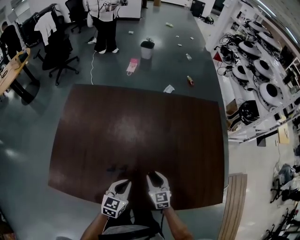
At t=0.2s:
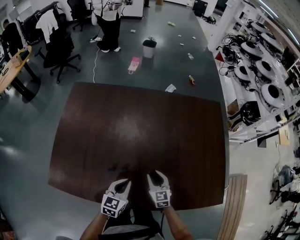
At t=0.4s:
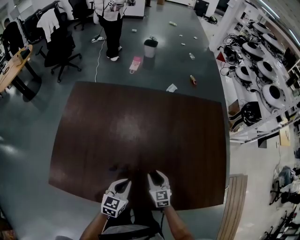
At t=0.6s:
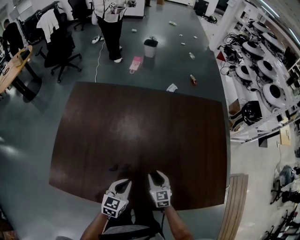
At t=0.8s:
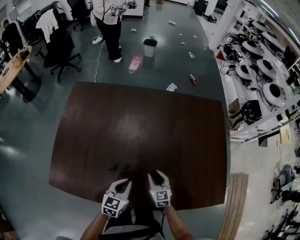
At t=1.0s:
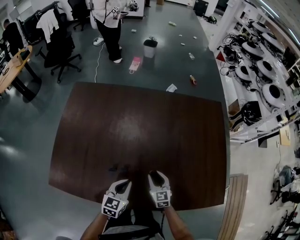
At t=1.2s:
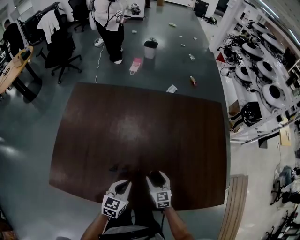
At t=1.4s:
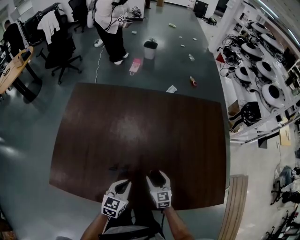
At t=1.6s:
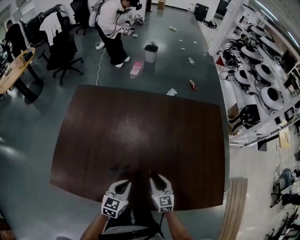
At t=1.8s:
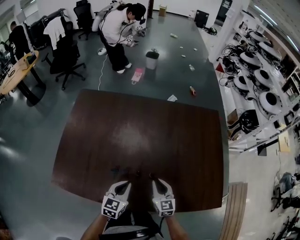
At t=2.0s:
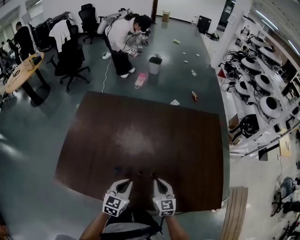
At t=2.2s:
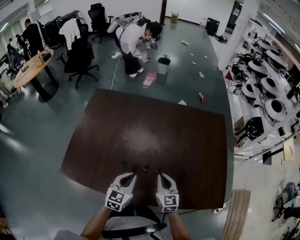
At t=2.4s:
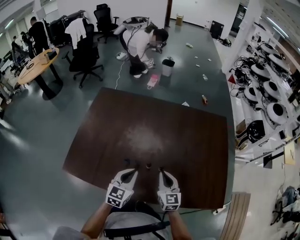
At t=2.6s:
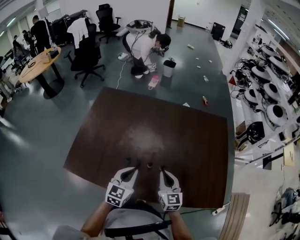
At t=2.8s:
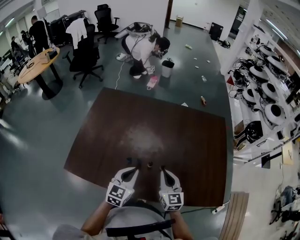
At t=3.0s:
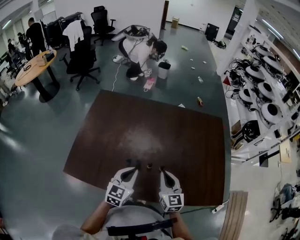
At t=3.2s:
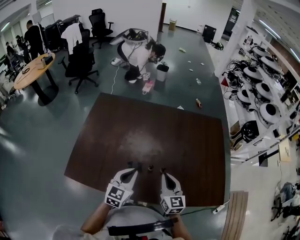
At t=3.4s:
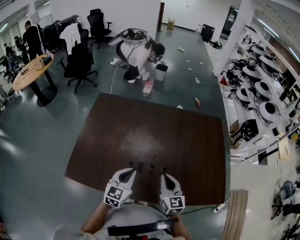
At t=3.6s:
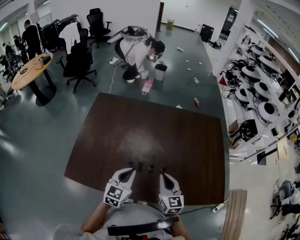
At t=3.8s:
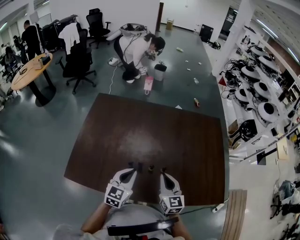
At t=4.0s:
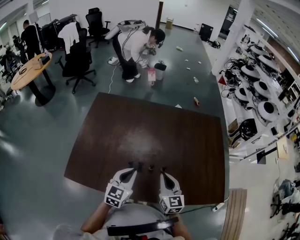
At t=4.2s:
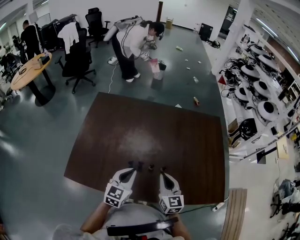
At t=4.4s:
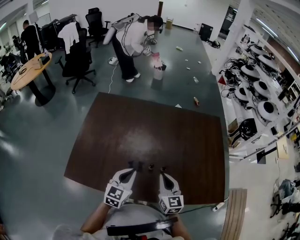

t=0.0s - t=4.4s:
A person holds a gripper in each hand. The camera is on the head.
t=0.0s - t=1.4s: The right gripper opens up.
t=1.4s - t=3.0s: The right gripper travels upward by about 20 cm, and closes its fingers. Meanwhile the left gripper travels upward by about 10 cm.
t=3.0s - t=4.4s: There are only small adjustments of the grippers.

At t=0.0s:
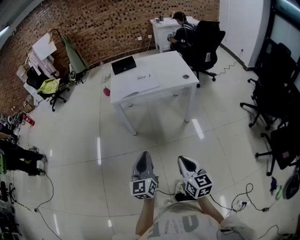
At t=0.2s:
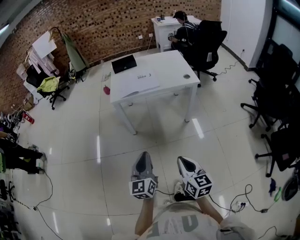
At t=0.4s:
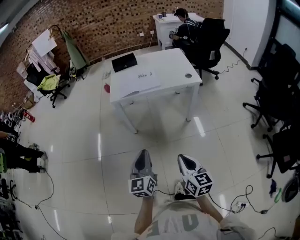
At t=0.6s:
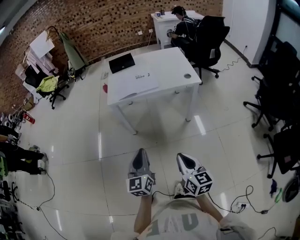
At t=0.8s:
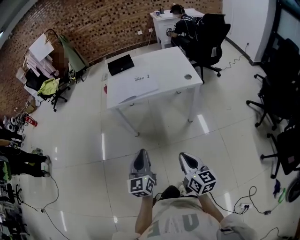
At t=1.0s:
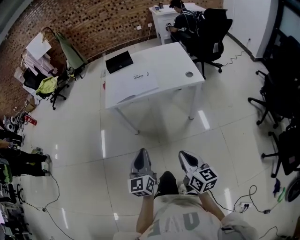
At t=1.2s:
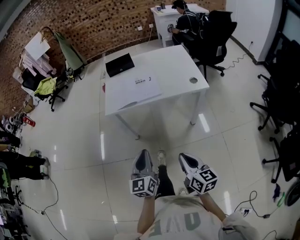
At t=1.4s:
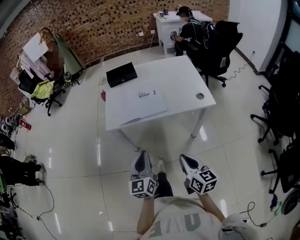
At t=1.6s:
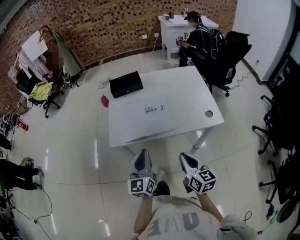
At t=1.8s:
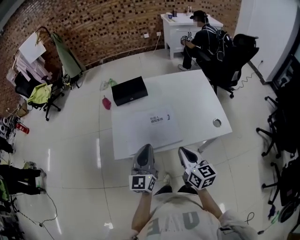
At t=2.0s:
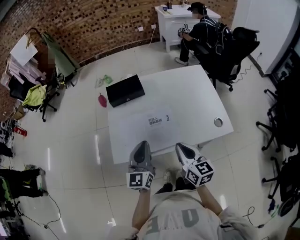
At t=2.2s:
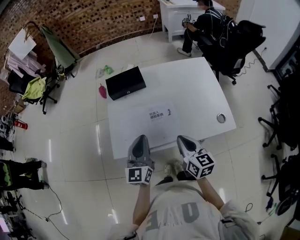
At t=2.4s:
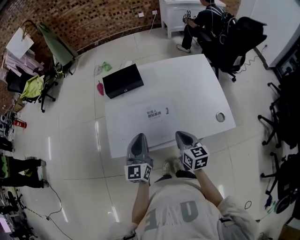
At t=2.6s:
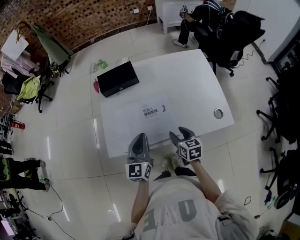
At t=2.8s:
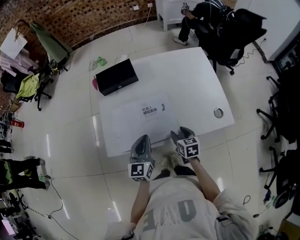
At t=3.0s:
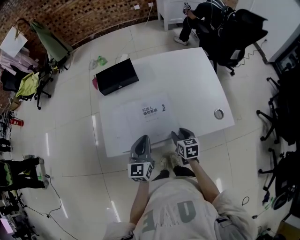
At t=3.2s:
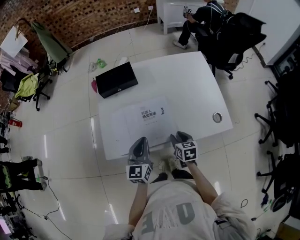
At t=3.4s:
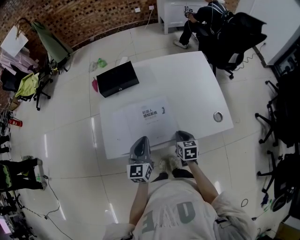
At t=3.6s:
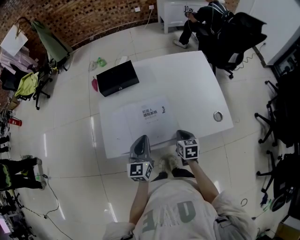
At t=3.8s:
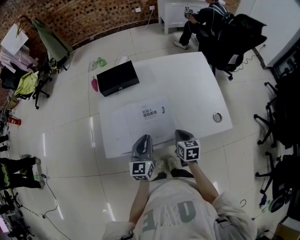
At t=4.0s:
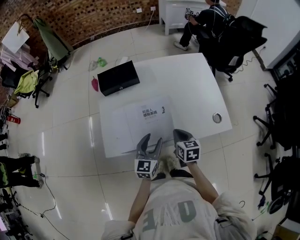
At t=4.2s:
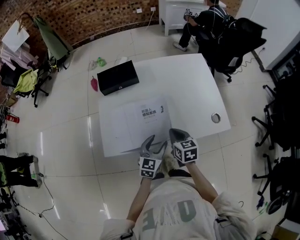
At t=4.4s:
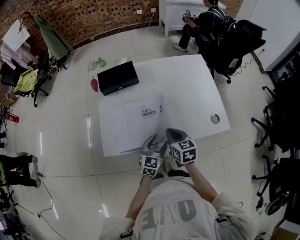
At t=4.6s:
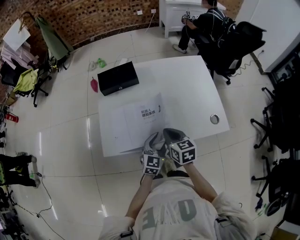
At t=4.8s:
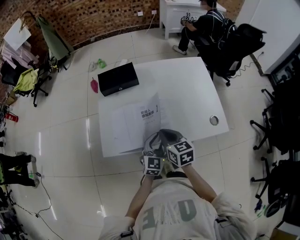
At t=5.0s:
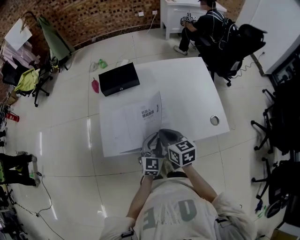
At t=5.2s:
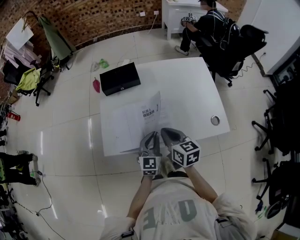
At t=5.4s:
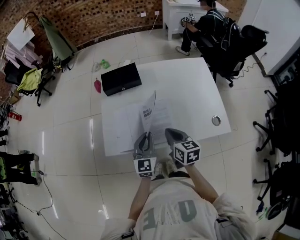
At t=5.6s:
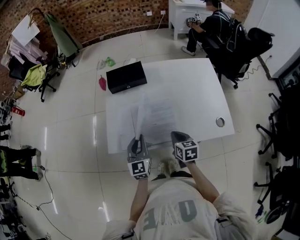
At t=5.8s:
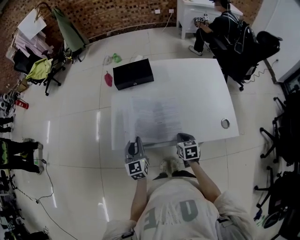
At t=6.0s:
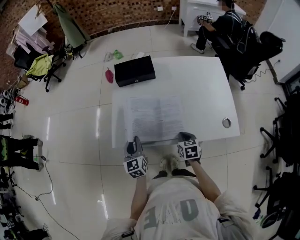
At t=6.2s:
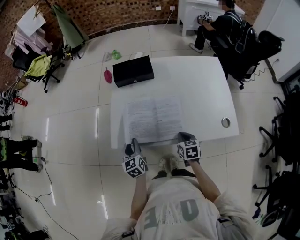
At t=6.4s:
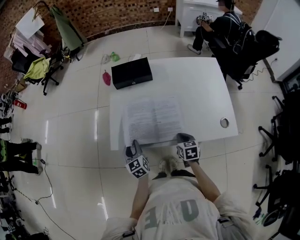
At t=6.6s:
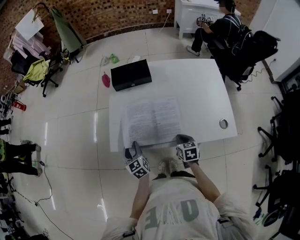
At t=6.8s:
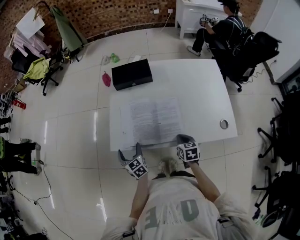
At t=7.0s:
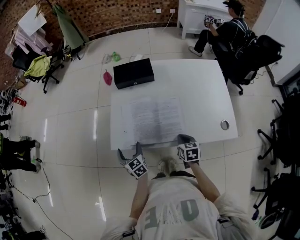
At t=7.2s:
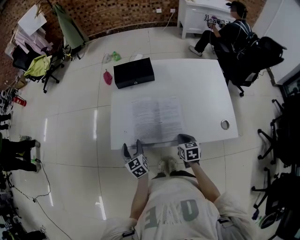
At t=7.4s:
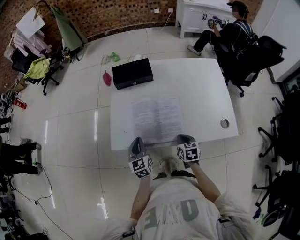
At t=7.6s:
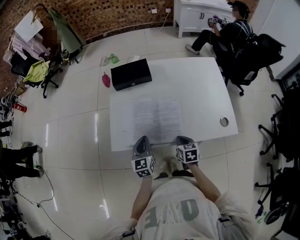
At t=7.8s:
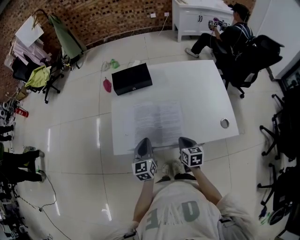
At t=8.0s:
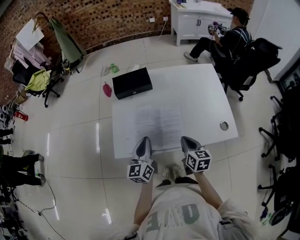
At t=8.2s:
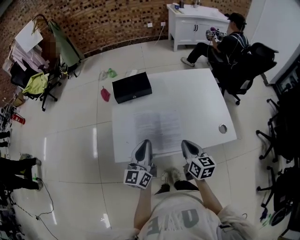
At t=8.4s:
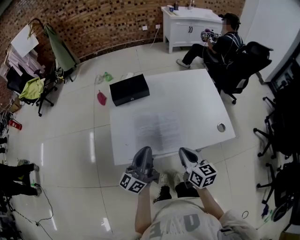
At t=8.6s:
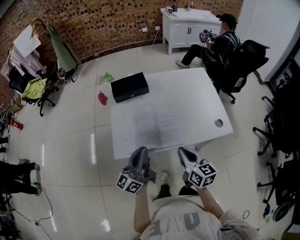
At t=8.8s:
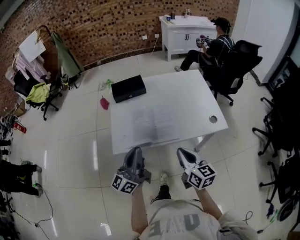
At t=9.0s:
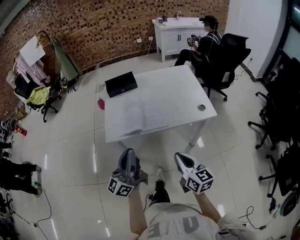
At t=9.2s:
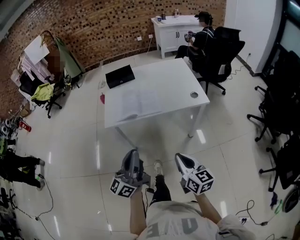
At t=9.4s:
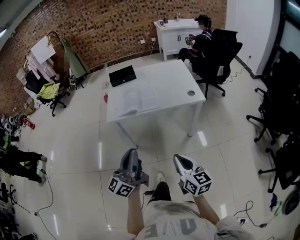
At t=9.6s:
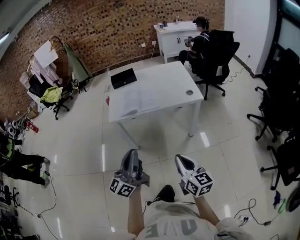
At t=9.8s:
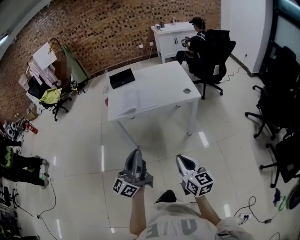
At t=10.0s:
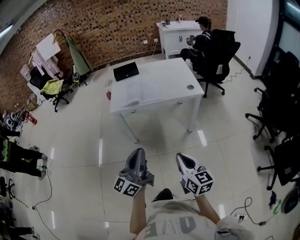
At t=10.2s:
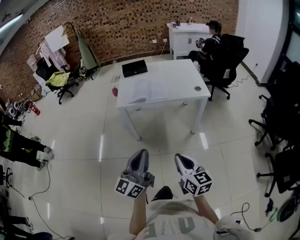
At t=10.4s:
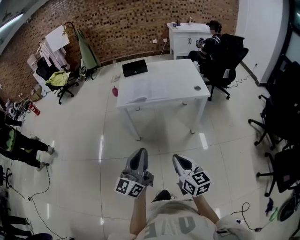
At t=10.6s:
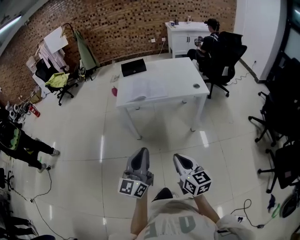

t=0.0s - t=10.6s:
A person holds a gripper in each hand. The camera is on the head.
t=0.0s - t=1.6s: The pair of grippers is taken forward, about 40 cm.
t=1.6s - t=3.0s: The two grippers go about 25 cm forward and downward. The right gripper swivels roughly 30 degrees, and opens up.
t=3.0s - t=4.6s: The left gripper shifts some 10 cm to the right and downward, and opens up; the right gripper goes about 10 cm upward and to the left, and closes up.
t=4.6s - t=6.0s: The left gripper shifts roughly 20 cm to the left, rotates about 40 degrees, and closes. The right gripper goes roughly 10 cm downward.
t=6.0s - t=7.6s: The left gripper travels to the right by approximately 5 cm, and opens, then closes again.
t=7.6s - t=9.0s: The two grippers go some 30 cm backward and upward. The left gripper angles its fingers upward, by some 50 degrees, while the right gripper points its fingers approximately 40 degrees further upward.
t=9.0s - t=10.6s: The two grippers go roughly 30 cm backward. The left gripper changes its angle by some 30 degrees.

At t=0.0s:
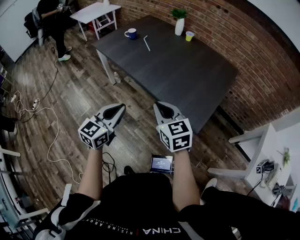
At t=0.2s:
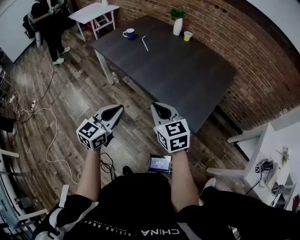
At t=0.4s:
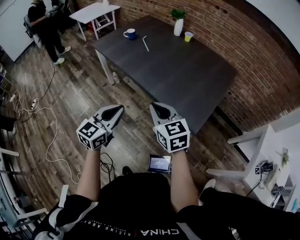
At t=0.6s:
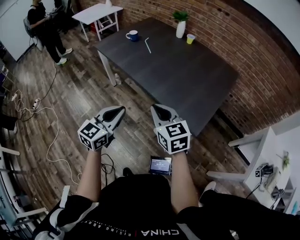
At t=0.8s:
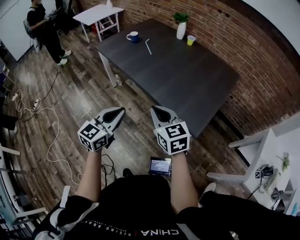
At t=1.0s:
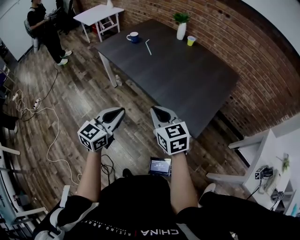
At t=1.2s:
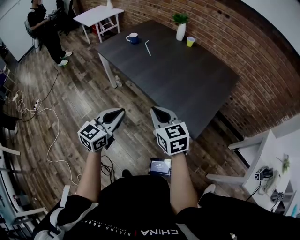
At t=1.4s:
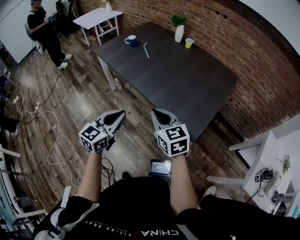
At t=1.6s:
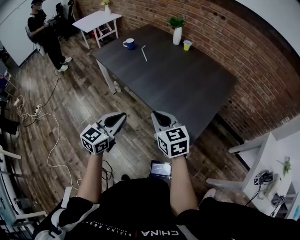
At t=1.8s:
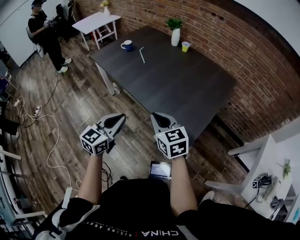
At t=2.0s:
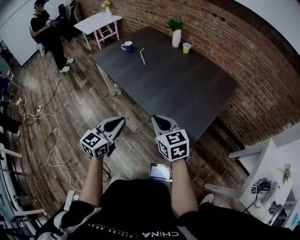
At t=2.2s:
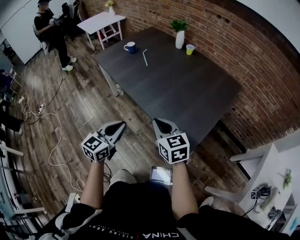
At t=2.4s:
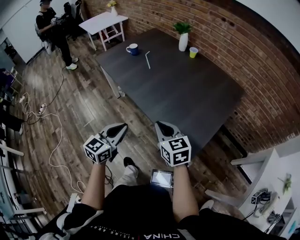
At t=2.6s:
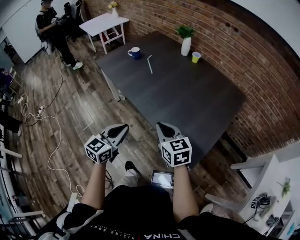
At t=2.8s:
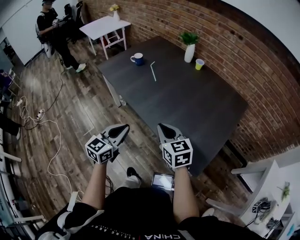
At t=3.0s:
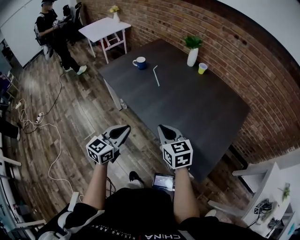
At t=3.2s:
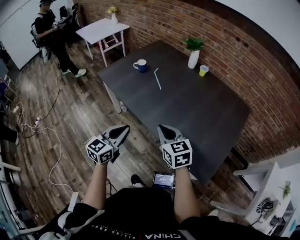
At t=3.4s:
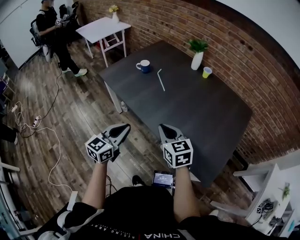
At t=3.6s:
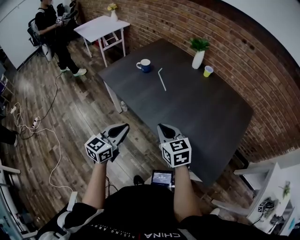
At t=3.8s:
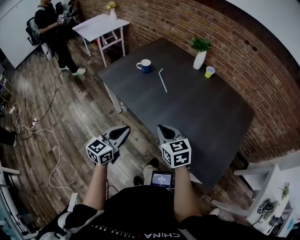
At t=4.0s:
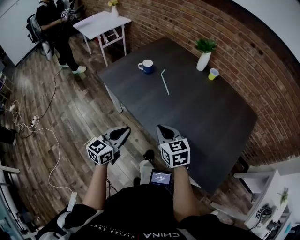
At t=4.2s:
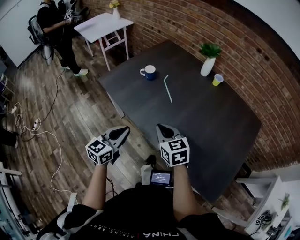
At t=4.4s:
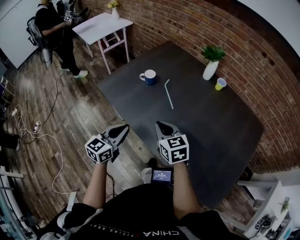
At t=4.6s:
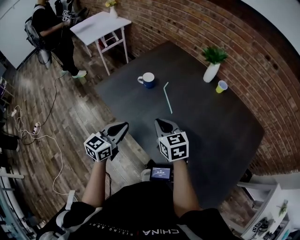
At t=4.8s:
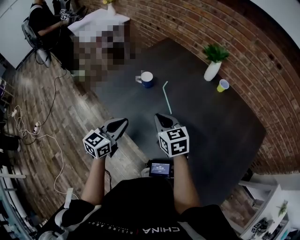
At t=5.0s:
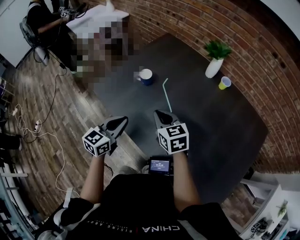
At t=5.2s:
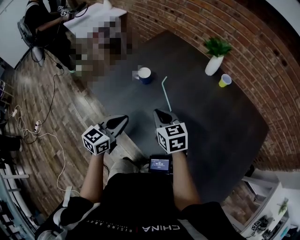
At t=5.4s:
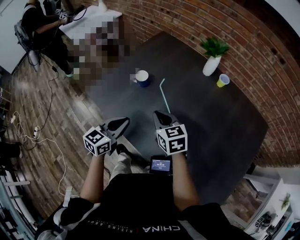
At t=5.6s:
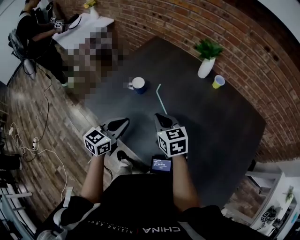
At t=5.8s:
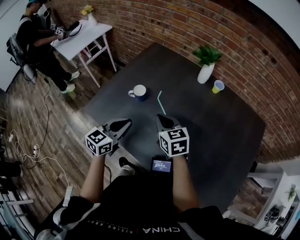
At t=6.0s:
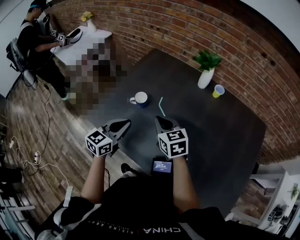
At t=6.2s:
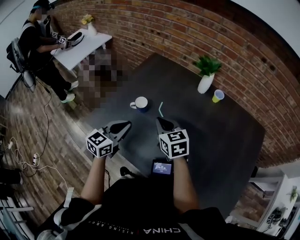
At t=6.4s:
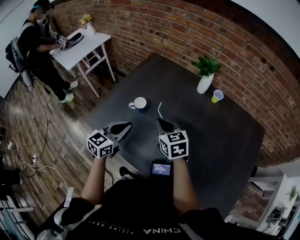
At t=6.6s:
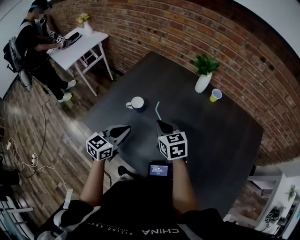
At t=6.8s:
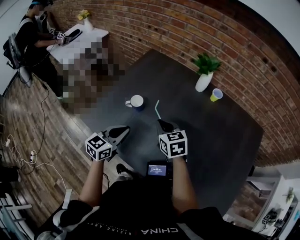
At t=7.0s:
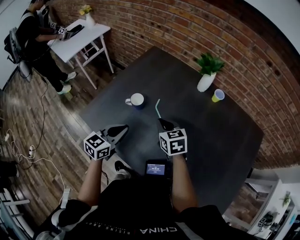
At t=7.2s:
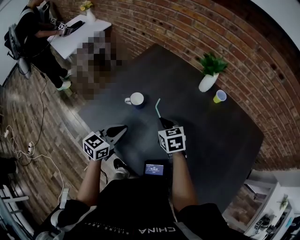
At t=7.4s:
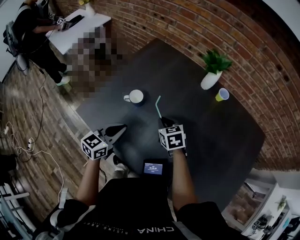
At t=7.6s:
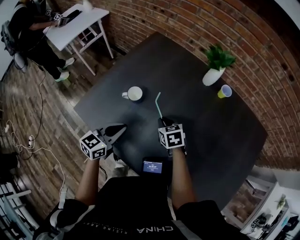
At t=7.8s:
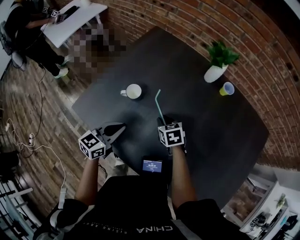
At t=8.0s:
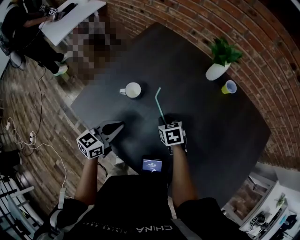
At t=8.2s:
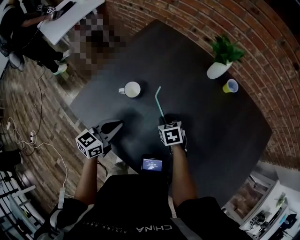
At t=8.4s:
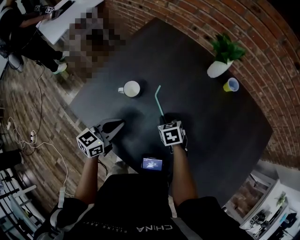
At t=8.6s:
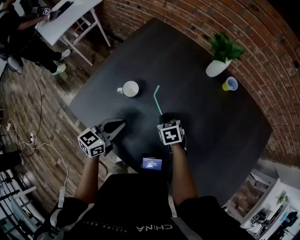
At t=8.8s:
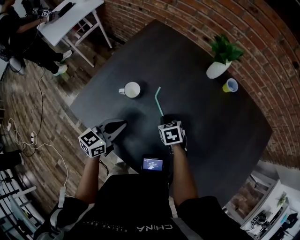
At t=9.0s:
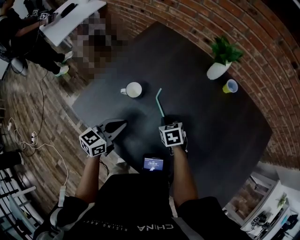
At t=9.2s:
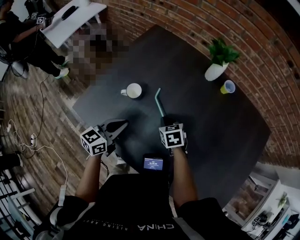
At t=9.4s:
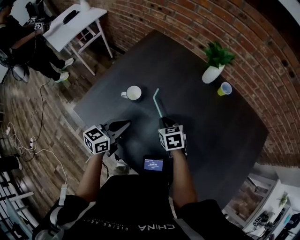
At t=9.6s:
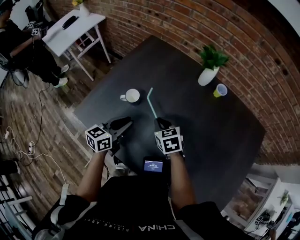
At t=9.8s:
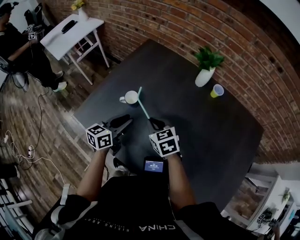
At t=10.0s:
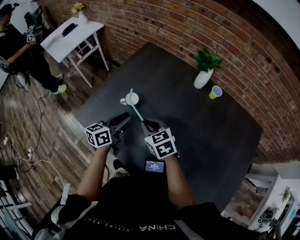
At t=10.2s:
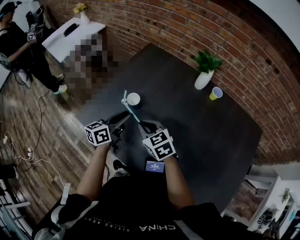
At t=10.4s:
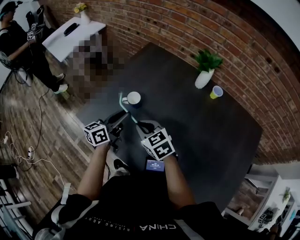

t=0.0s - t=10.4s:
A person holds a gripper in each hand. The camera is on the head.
t=0.0s - t=1.4s: There are only small adjustments of the grippers.
t=1.4s - t=3.0s: Both grippers move forward, roughly 20 cm.
t=3.0s - t=4.4s: Both grippers move forward and to the left, some 25 cm.
t=4.4s - t=6.0s: Both grippers move forward, about 20 cm.
t=6.0s - t=7.4s: The right gripper goes approximately 15 cm downward and forward; the left gripper travels downward by roughly 5 cm.
t=7.4s - t=9.0s: The right gripper is displaced downward by about 10 cm.
t=9.0s - t=10.4s: The left gripper goes about 5 cm upward, turns by roughly 30 degrees, and opens up; the right gripper shifts approximately 20 cm upward and to the left, and turns by some 30 degrees.
